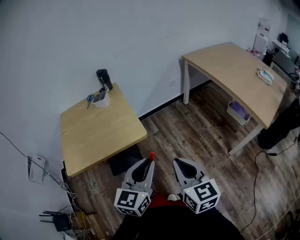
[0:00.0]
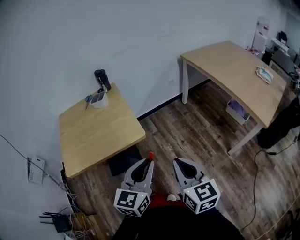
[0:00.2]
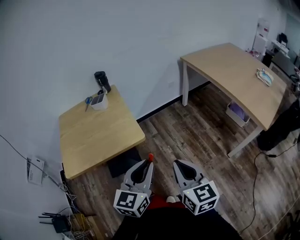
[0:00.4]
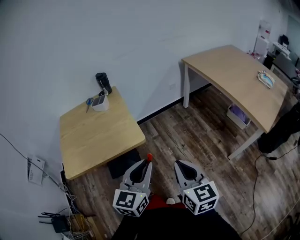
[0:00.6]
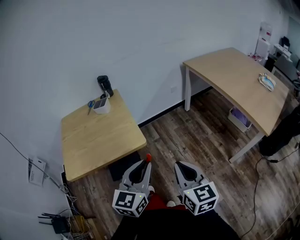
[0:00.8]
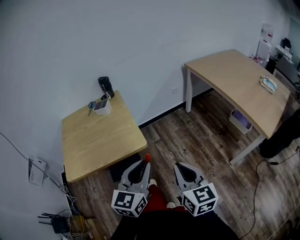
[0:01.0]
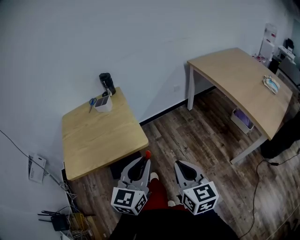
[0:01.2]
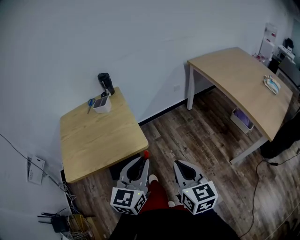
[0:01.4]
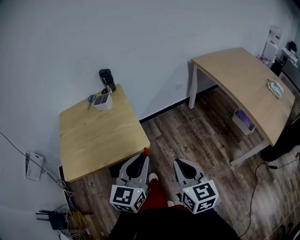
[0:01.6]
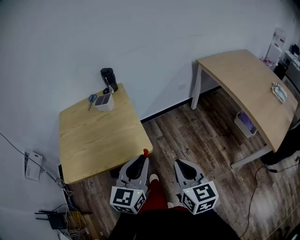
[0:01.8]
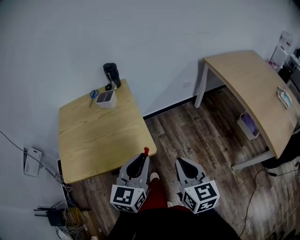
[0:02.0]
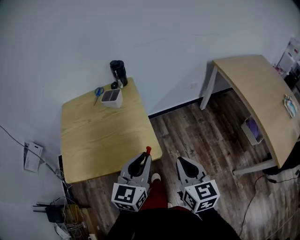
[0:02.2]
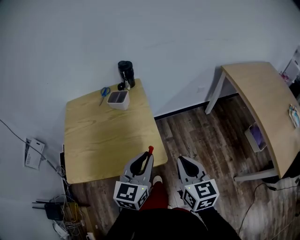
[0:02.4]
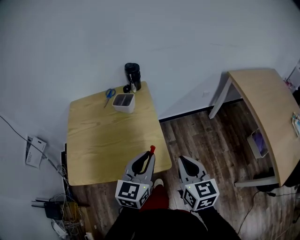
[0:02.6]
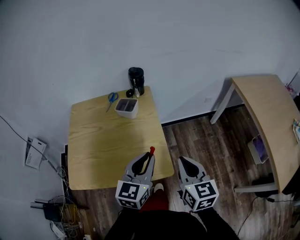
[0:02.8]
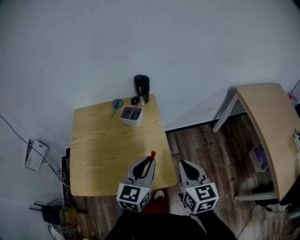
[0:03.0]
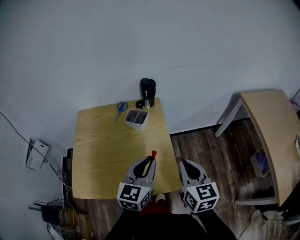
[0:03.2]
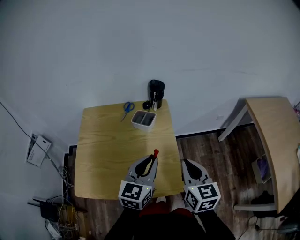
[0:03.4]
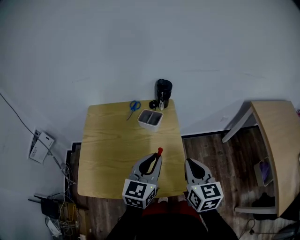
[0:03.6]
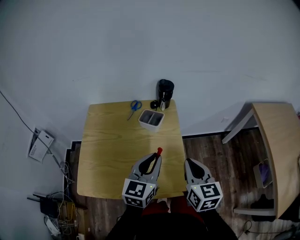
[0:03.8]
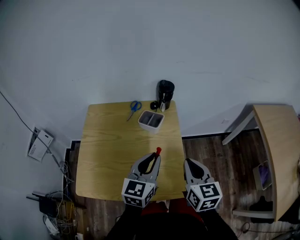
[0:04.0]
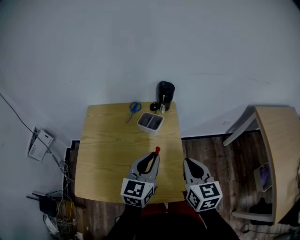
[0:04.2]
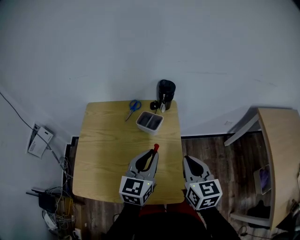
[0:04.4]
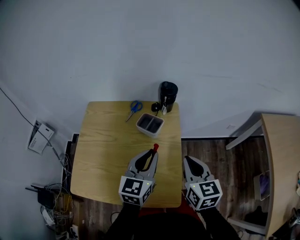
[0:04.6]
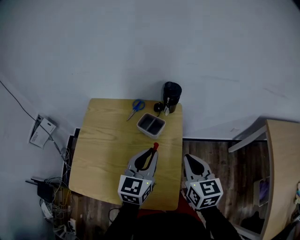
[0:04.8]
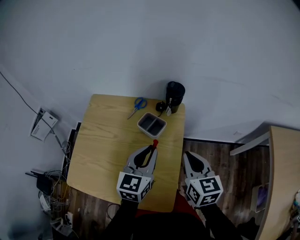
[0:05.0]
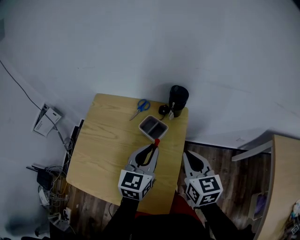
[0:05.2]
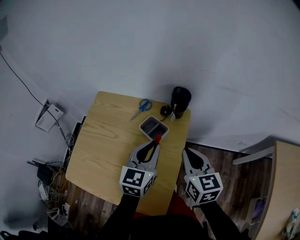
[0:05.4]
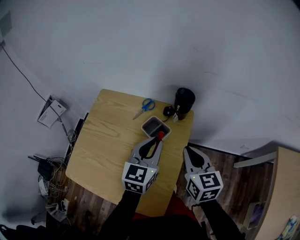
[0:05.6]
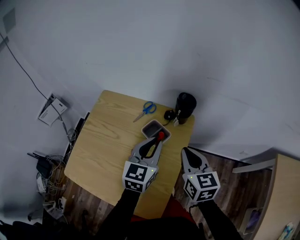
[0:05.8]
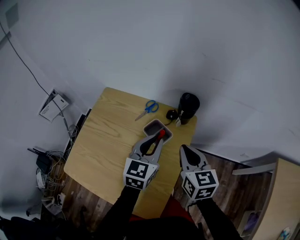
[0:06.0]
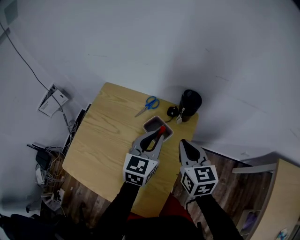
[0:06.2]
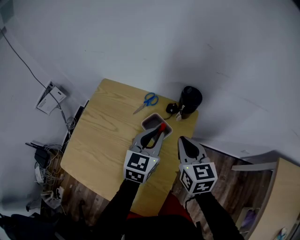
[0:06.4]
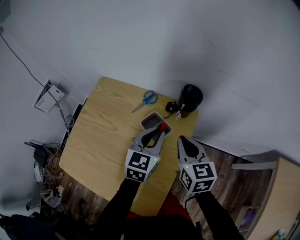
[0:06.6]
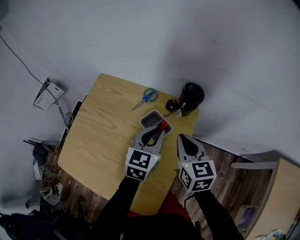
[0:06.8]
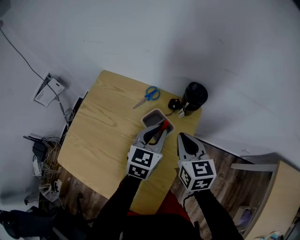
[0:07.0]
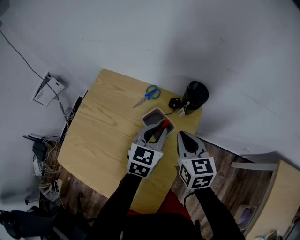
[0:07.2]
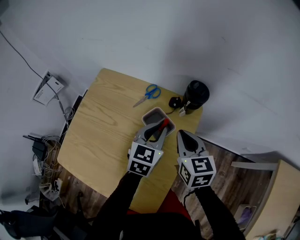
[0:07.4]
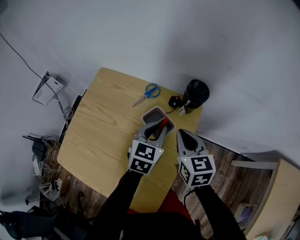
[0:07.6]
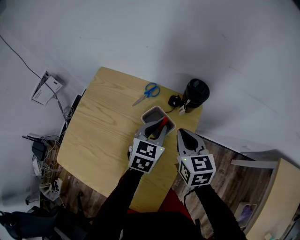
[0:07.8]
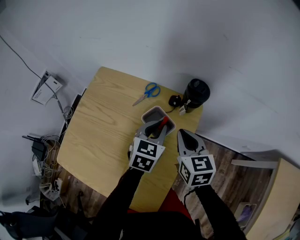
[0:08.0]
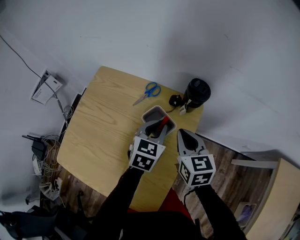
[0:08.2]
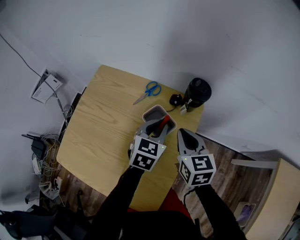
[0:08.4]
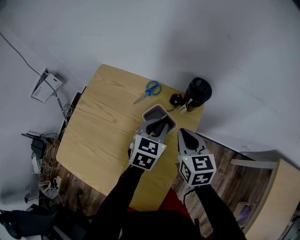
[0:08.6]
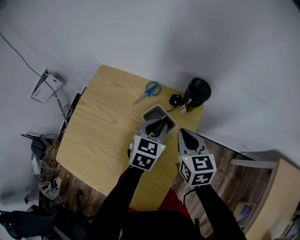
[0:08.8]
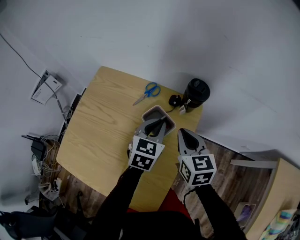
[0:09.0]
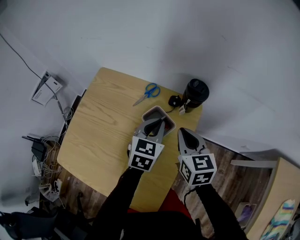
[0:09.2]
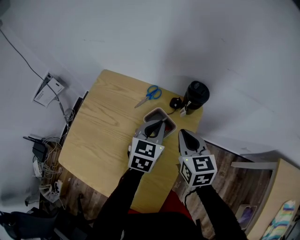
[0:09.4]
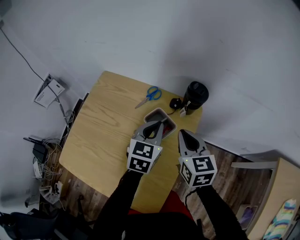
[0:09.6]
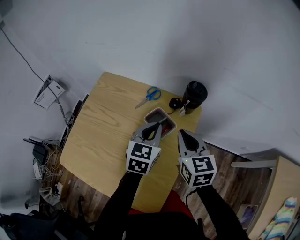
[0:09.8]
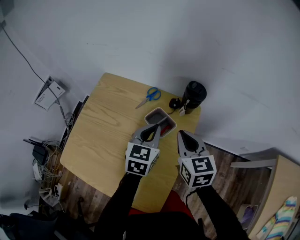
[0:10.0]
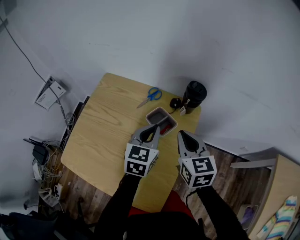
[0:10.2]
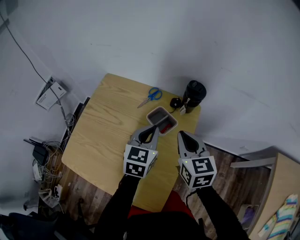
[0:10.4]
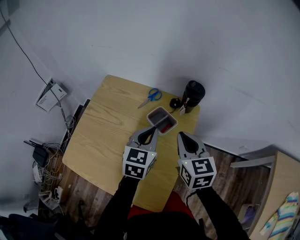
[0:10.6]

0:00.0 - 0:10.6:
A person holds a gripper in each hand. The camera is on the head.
0:00.0 - 0:01.6: Both grippers move forward, some 10 cm.
0:01.6 - 0:03.0: The grippers both shift forward and to the left by some 25 cm.
0:03.0 - 0:04.6: The left gripper heads forward and to the left, covering approximately 15 cm. The right gripper goes approximately 15 cm forward.
0:04.6 - 0:06.0: The two grippers go some 15 cm forward.
0:06.0 - 0:07.6: The left gripper heads downward, covering some 10 cm. Meanwhile the right gripper ends up approximately 5 cm from where it was.
0:07.6 - 0:09.0: The two grippers keep their place.
0:09.0 - 0:10.6: Both grippers travel together backward and upward, some 5 cm.

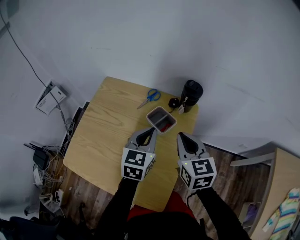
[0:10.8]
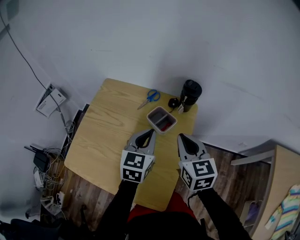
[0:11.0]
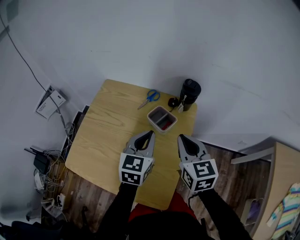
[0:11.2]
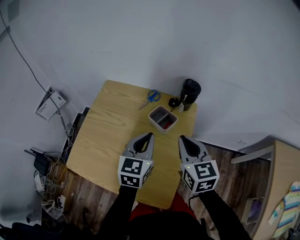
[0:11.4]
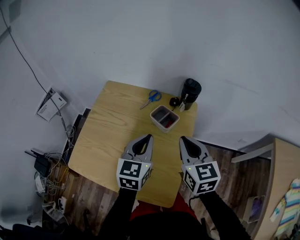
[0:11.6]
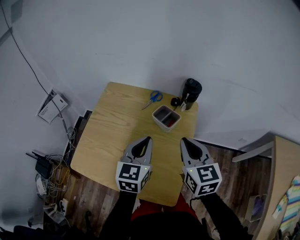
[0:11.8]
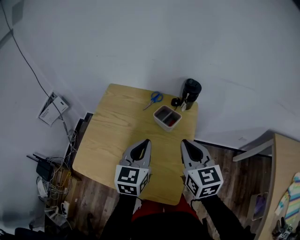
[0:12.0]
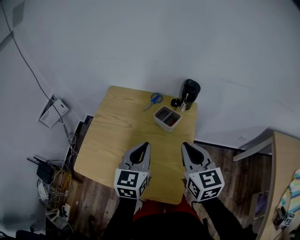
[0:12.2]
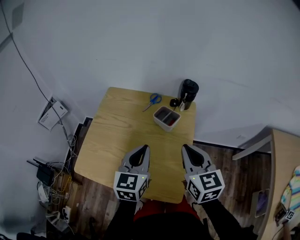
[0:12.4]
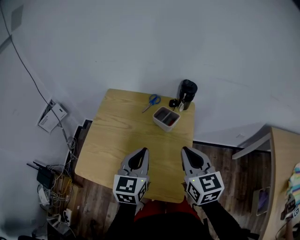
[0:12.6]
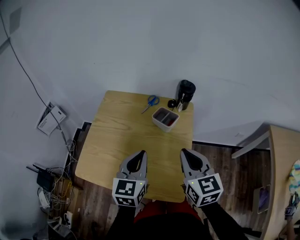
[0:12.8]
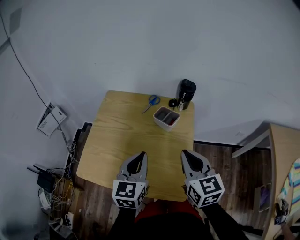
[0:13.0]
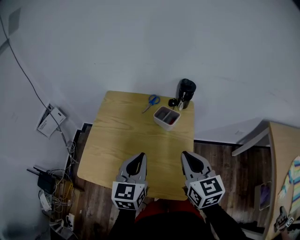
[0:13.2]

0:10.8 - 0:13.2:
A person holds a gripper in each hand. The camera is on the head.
0:10.8 - 0:12.0: The right gripper moves backward, approximately 10 cm; the left gripper heads backward and to the left, covering about 10 cm.
0:12.0 - 0:13.2: The two grippers go some 5 cm backward.

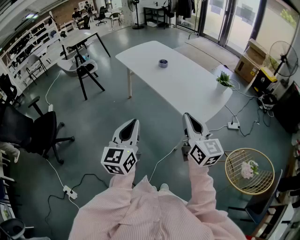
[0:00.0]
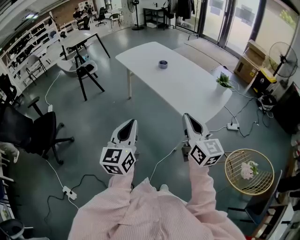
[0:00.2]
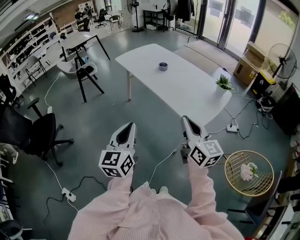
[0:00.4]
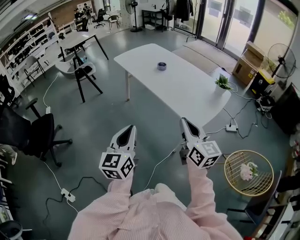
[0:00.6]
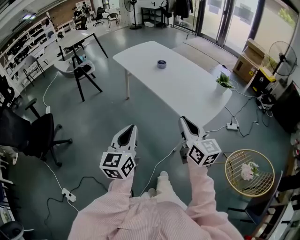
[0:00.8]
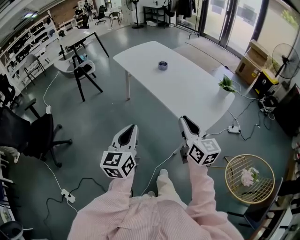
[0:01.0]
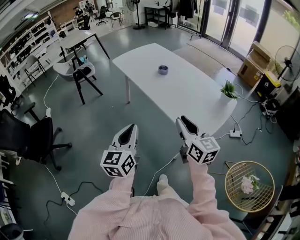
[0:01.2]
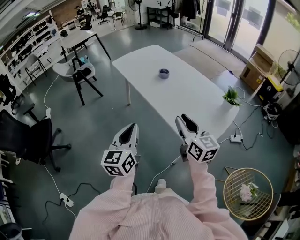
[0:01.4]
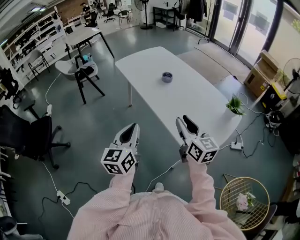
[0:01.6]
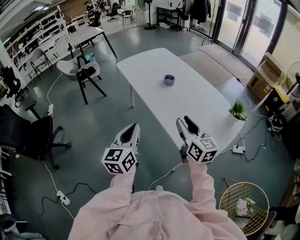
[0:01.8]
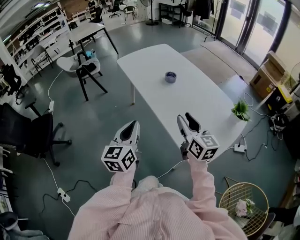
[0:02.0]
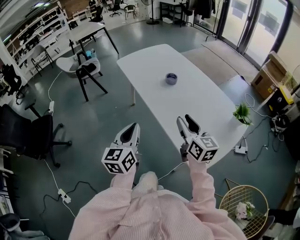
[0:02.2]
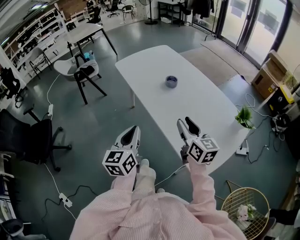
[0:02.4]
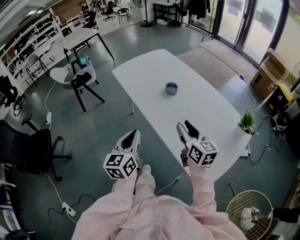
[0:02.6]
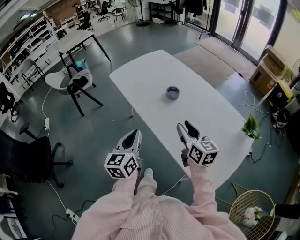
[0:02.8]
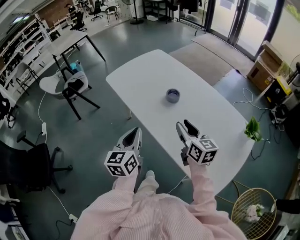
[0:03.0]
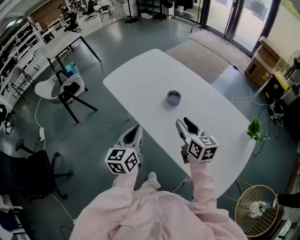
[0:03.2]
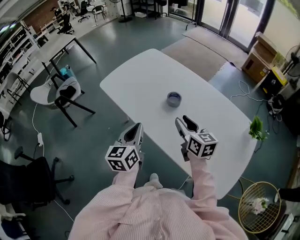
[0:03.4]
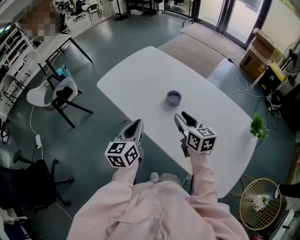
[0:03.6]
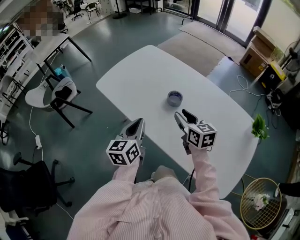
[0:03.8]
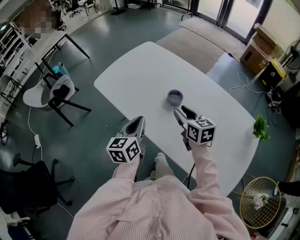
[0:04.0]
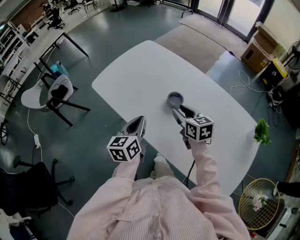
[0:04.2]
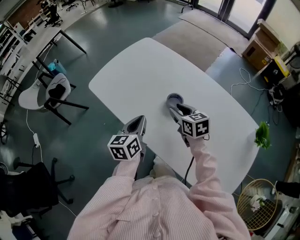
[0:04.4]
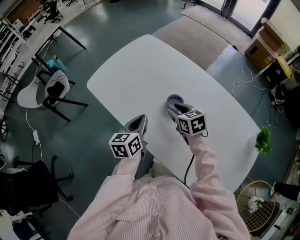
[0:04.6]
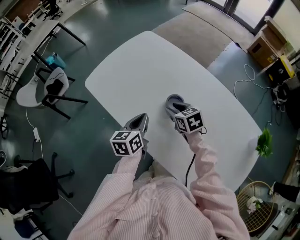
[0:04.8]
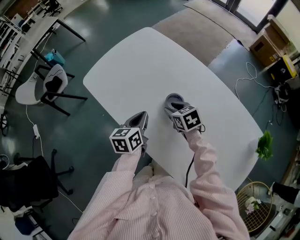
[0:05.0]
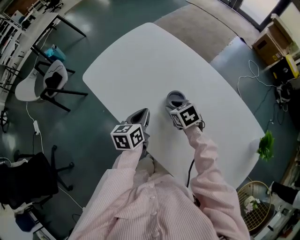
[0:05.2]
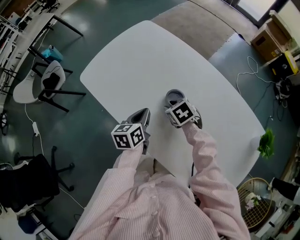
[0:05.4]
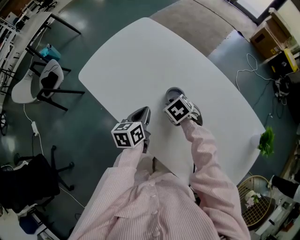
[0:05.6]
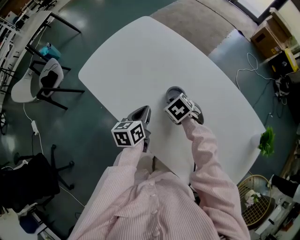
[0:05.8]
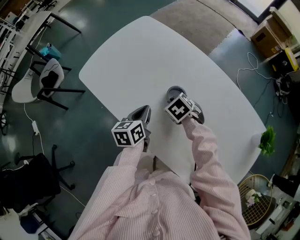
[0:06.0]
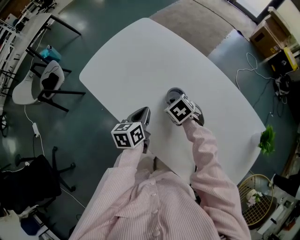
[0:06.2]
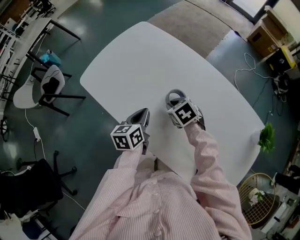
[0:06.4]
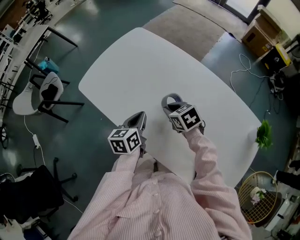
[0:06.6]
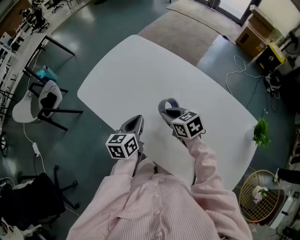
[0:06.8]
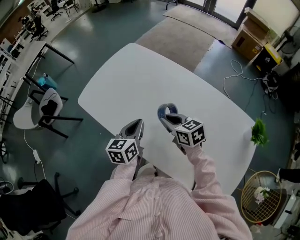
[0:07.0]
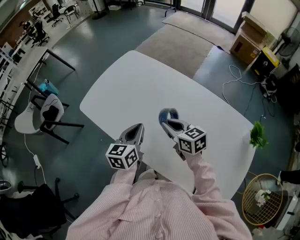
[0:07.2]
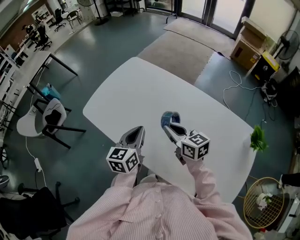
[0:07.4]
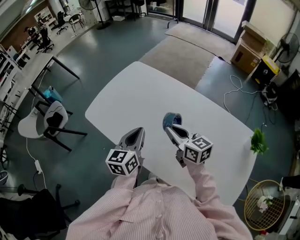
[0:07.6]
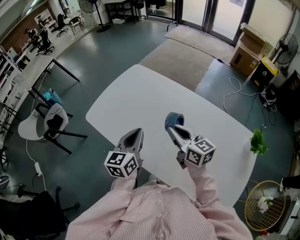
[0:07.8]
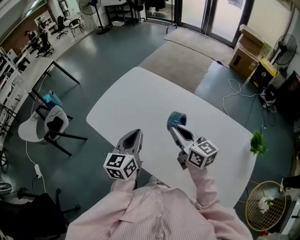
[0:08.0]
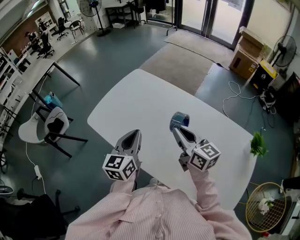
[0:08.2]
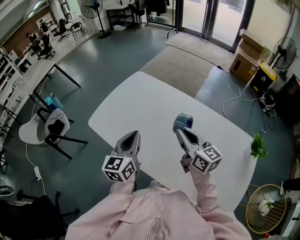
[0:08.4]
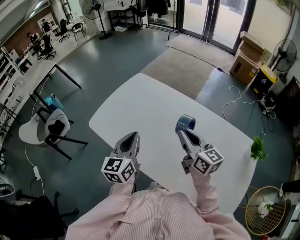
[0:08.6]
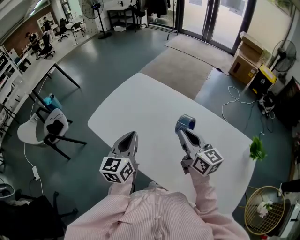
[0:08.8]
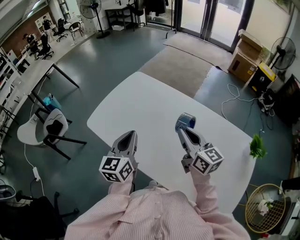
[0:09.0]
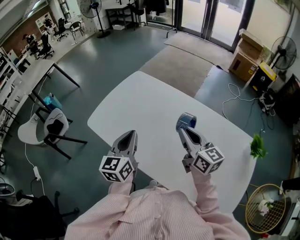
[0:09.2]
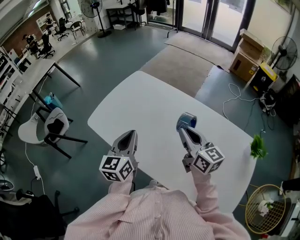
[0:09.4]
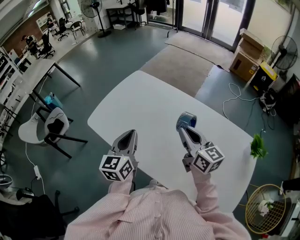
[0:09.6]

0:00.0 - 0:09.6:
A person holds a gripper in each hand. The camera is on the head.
0:00.0 - 0:01.6: The two grippers go some 25 cm forward. The right gripper opens up.
0:01.6 - 0:03.2: The grippers both shift forward by some 35 cm.
0:03.2 - 0:04.8: Both grippers move forward and downward, roughly 25 cm. The right gripper angles its fingers downward, by about 30 degrees.
0:04.8 - 0:06.4: The right gripper closes up.
0:06.4 - 0:08.0: Both grippers travel together upward, some 20 cm. The right gripper angles its fingers upward, by some 50 degrees. Meanwhile the left gripper changes its angle by approximately 30 degrees.
0:08.0 - 0:09.6: The grippers move only a little.

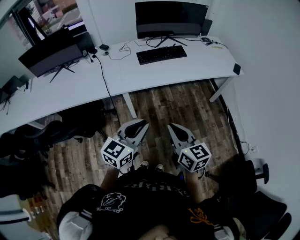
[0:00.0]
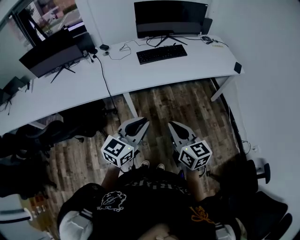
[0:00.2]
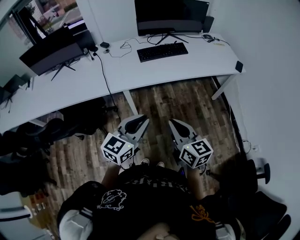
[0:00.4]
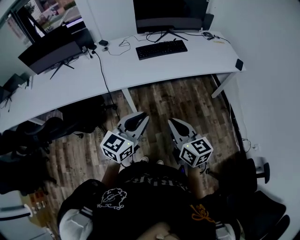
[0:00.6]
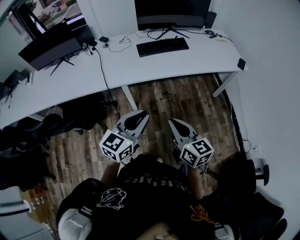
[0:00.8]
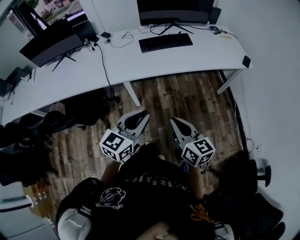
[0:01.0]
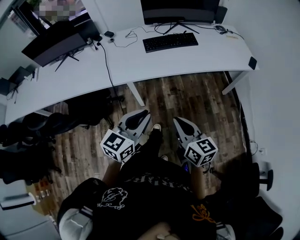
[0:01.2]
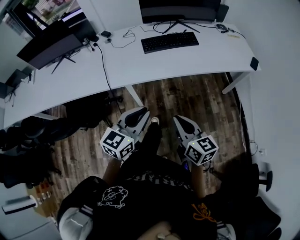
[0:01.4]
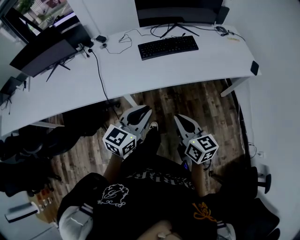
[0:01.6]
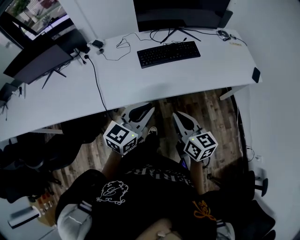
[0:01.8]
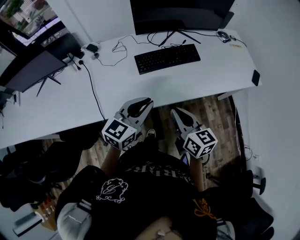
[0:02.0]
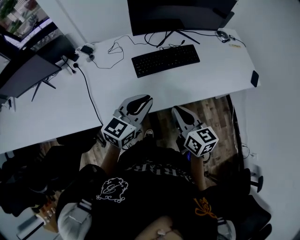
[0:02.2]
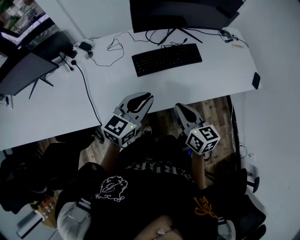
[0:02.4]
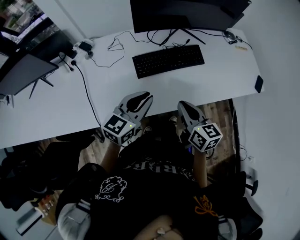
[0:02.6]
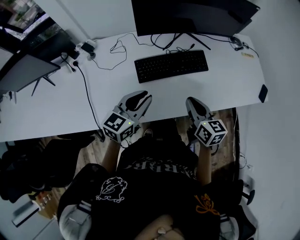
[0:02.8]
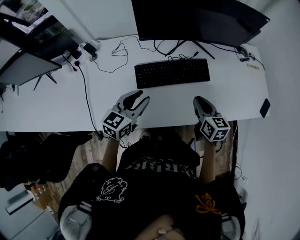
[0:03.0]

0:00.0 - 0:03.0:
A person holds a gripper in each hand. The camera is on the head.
0:00.0 - 0:01.6: Both grippers travel together forward, roughly 20 cm.
0:01.6 - 0:03.0: The two grippers go some 40 cm forward.
